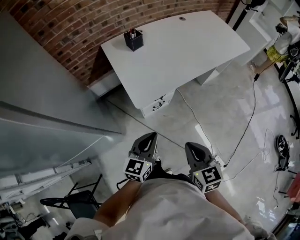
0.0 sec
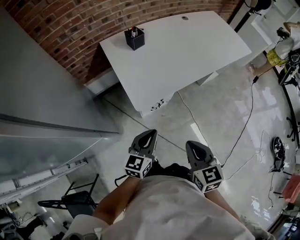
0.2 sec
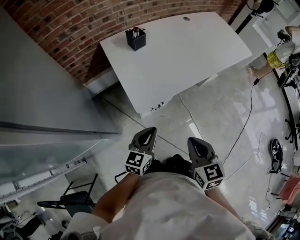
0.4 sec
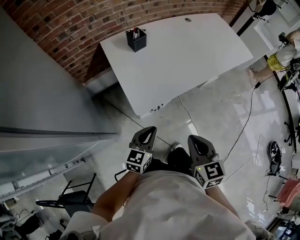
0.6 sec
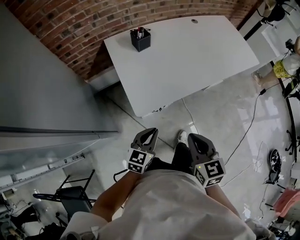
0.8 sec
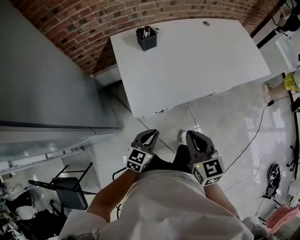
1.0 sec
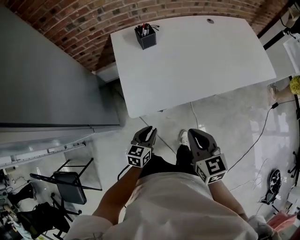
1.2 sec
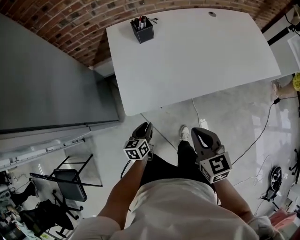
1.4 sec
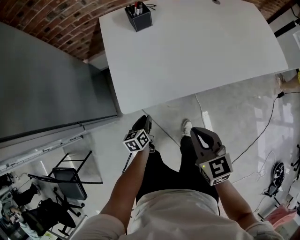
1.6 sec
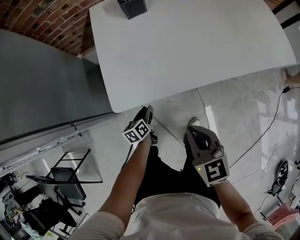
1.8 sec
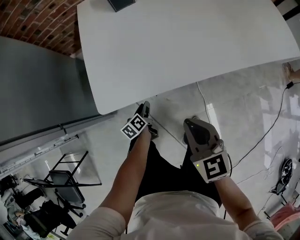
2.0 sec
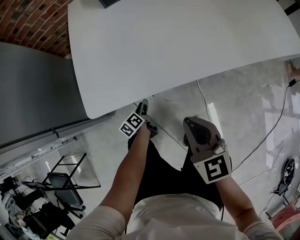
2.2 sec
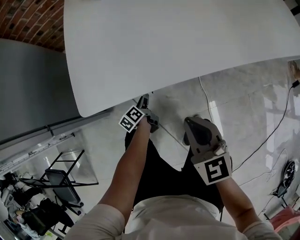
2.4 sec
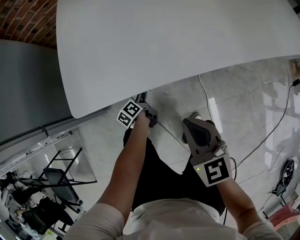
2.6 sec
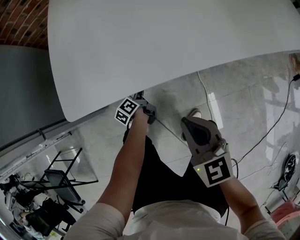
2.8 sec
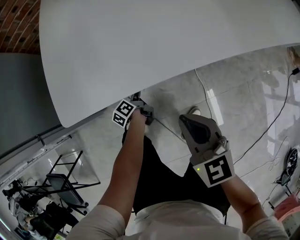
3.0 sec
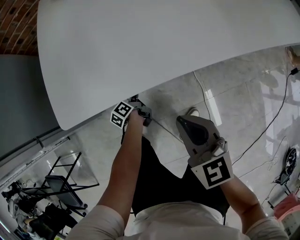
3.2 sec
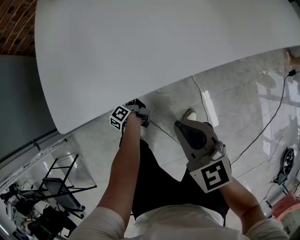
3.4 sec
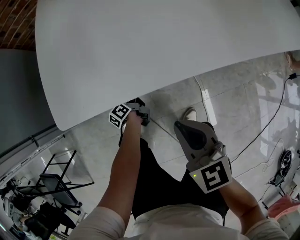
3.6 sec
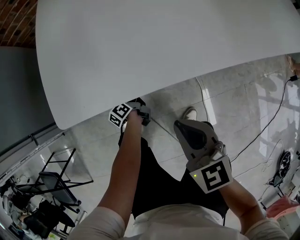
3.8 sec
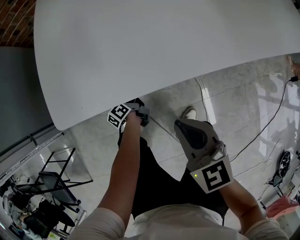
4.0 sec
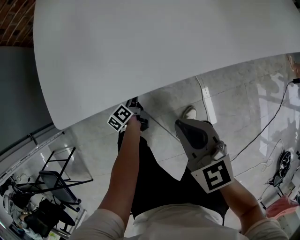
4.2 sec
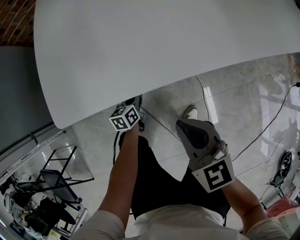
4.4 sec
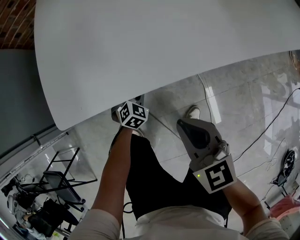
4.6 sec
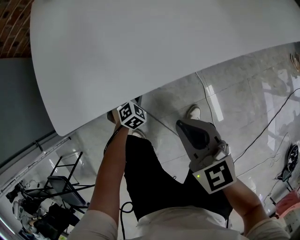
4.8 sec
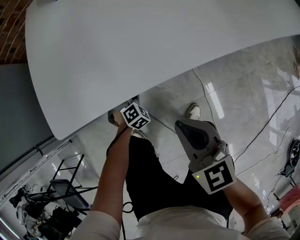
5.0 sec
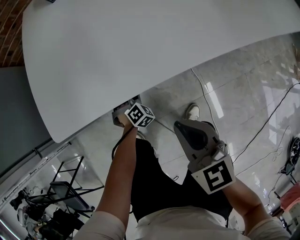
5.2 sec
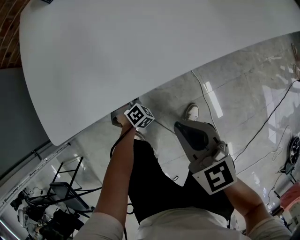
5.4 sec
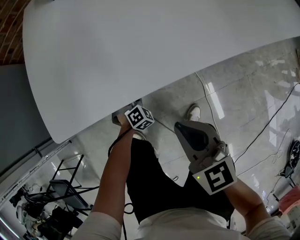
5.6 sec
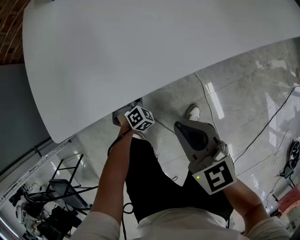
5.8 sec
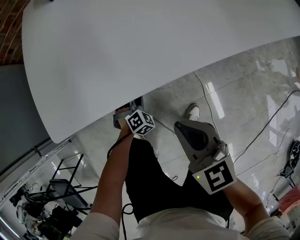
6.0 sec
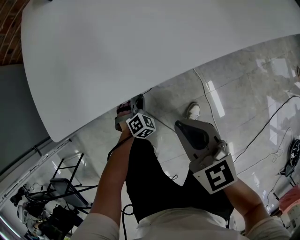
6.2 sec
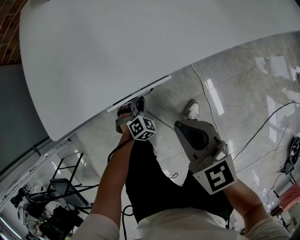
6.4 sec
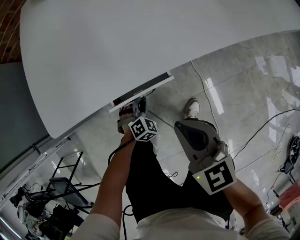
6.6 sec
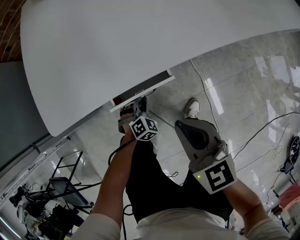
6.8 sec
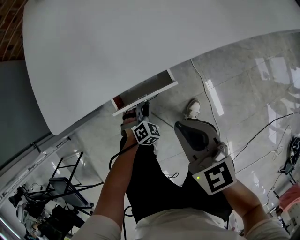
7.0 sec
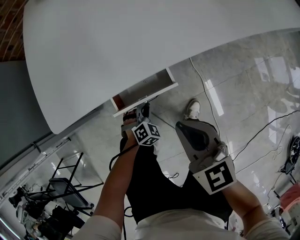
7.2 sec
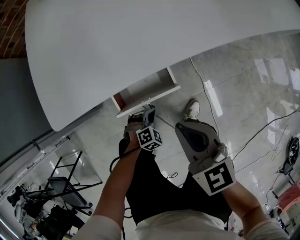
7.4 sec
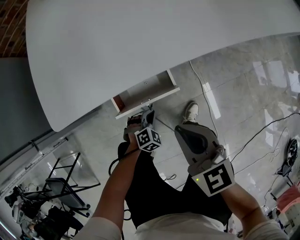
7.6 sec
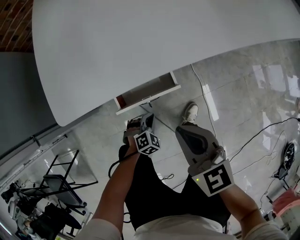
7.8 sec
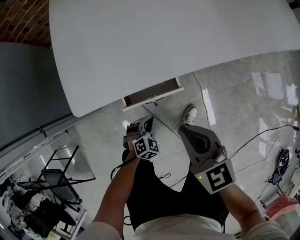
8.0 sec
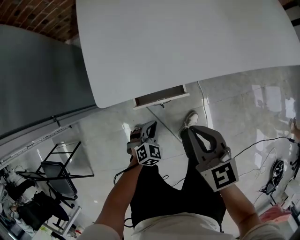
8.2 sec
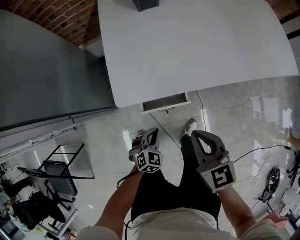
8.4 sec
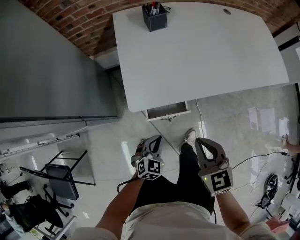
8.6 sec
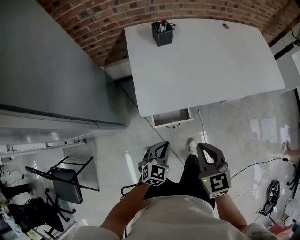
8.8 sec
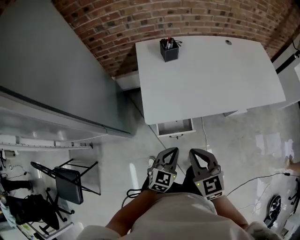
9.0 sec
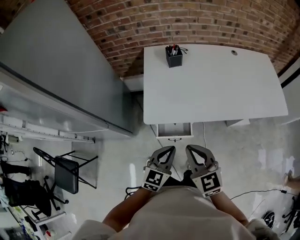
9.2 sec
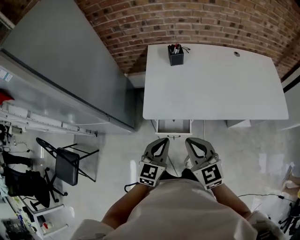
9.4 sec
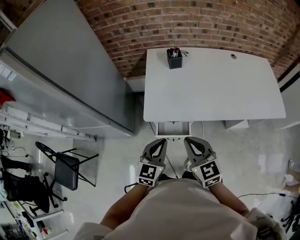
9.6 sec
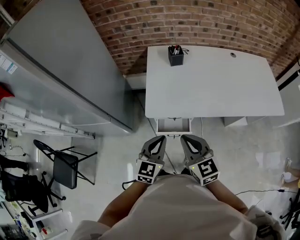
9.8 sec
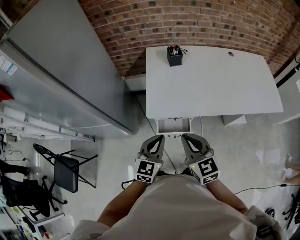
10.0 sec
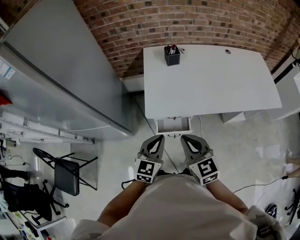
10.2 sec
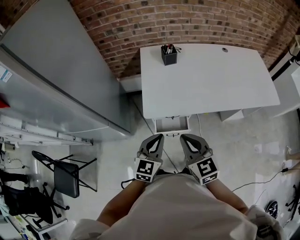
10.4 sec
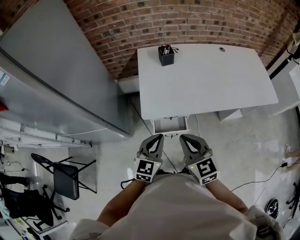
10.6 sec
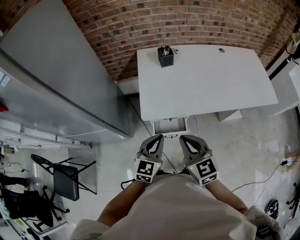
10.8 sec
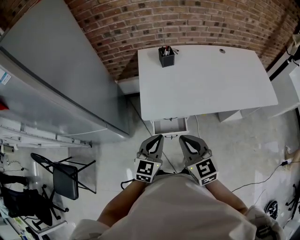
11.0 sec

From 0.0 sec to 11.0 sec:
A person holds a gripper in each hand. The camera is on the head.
From 0.0 sec to 1.6 sec: The left gripper is displaced downward and forward by roughly 35 cm, and rotates some 50 degrees; the right gripper moves forward and downward, some 20 cm.
From 1.6 sec to 3.2 sec: Both grippers travel together downward, approximately 25 cm. The left gripper swivels about 40 degrees.
From 3.2 sec to 4.8 sec: The left gripper shifts by about 5 cm, and twists about 120 degrees clockwise, seen from behind.
From 4.8 sec to 6.2 sec: The grippers stay close to where they were, moving slightly.
From 6.2 sec to 7.8 sec: The left gripper is displaced backward by about 10 cm.
From 7.8 sec to 9.4 sec: The right gripper moves upward, some 35 cm, and changes its angle by roughly 30 degrees. Meanwhile the left gripper shifts roughly 60 cm upward, and points its fingers some 50 degrees further upward.
From 9.4 sec to 11.0 sec: The left gripper moves approximately 5 cm. The right gripper heads to the left, covering about 5 cm.

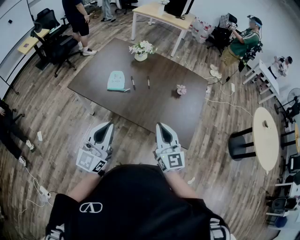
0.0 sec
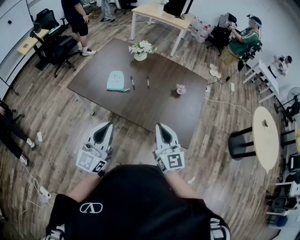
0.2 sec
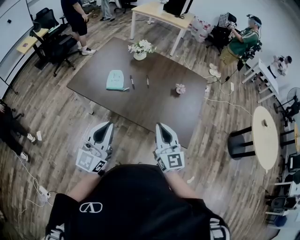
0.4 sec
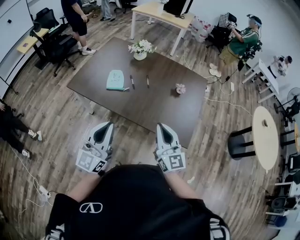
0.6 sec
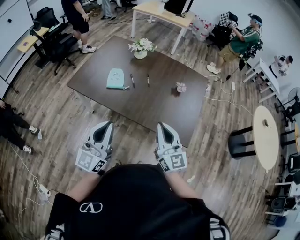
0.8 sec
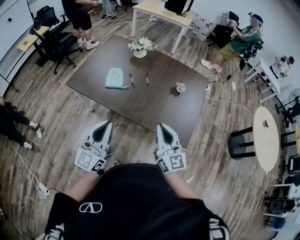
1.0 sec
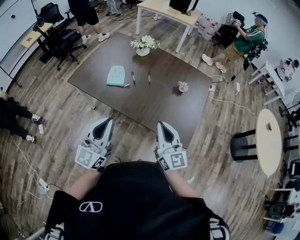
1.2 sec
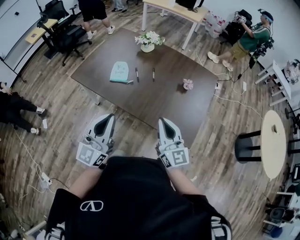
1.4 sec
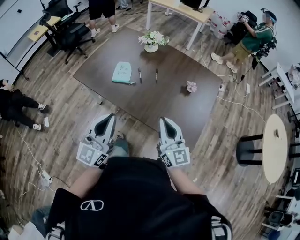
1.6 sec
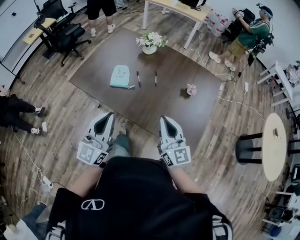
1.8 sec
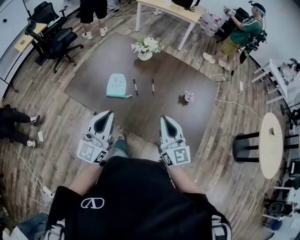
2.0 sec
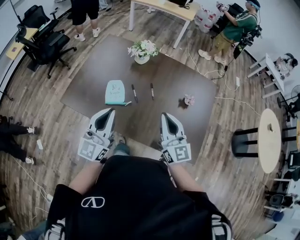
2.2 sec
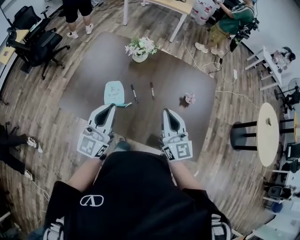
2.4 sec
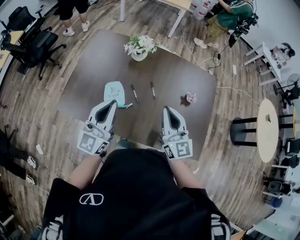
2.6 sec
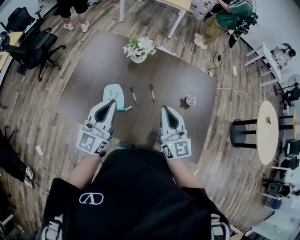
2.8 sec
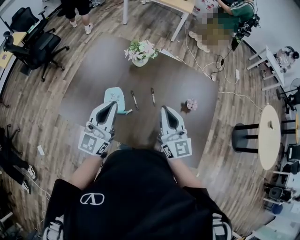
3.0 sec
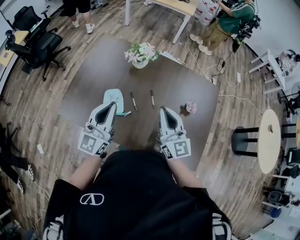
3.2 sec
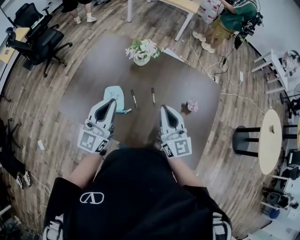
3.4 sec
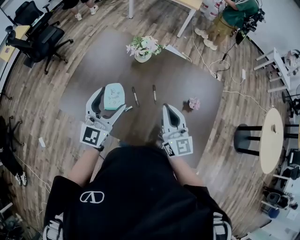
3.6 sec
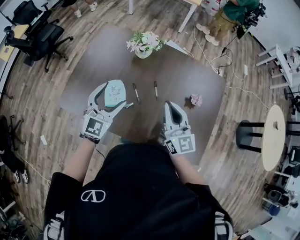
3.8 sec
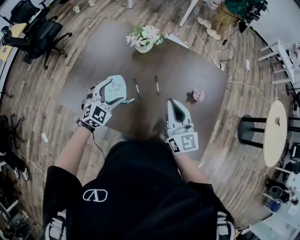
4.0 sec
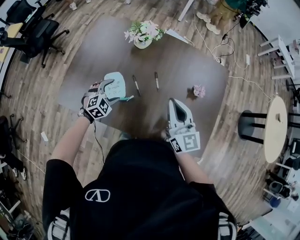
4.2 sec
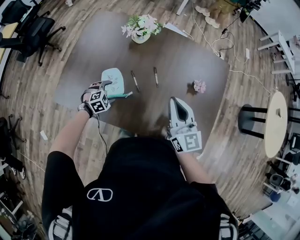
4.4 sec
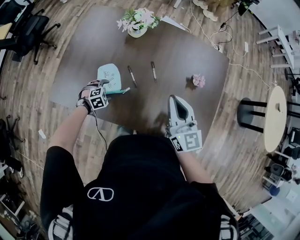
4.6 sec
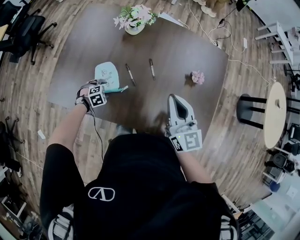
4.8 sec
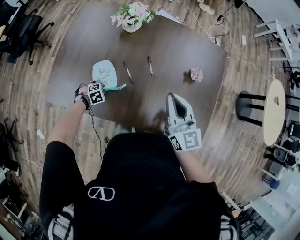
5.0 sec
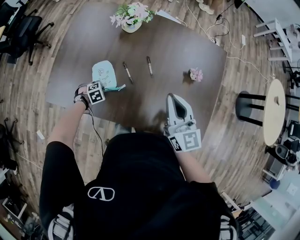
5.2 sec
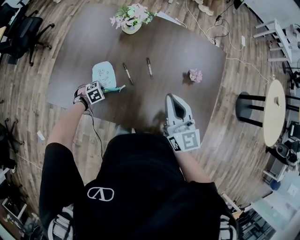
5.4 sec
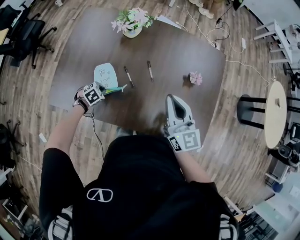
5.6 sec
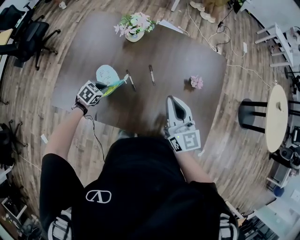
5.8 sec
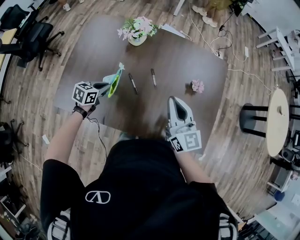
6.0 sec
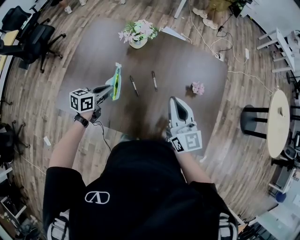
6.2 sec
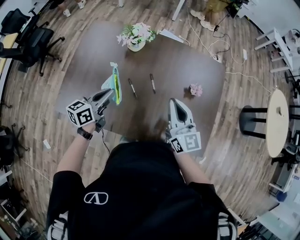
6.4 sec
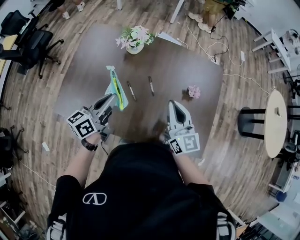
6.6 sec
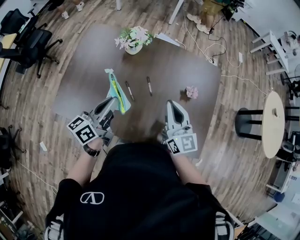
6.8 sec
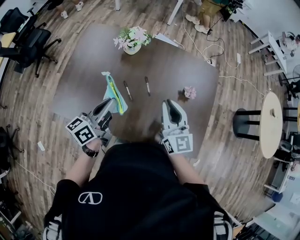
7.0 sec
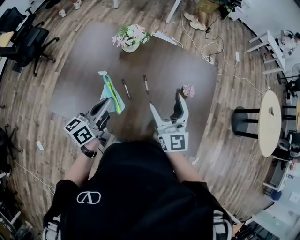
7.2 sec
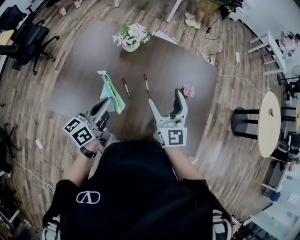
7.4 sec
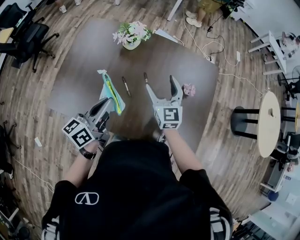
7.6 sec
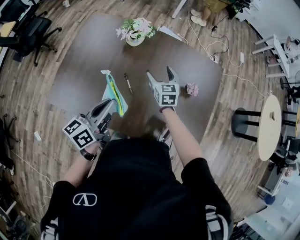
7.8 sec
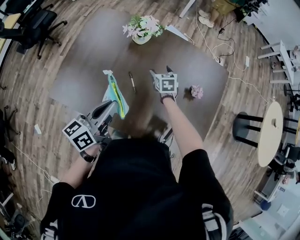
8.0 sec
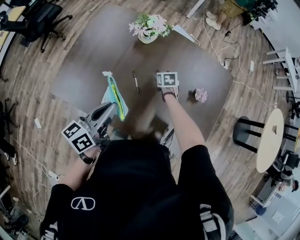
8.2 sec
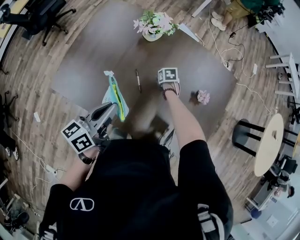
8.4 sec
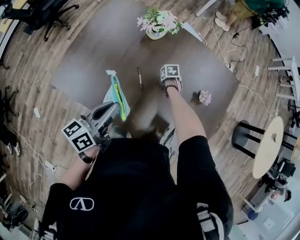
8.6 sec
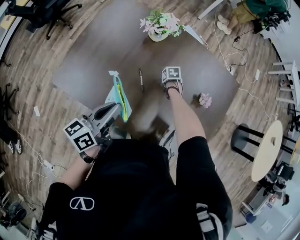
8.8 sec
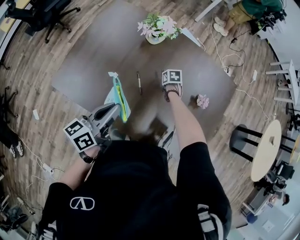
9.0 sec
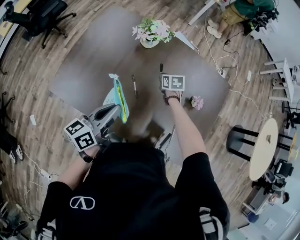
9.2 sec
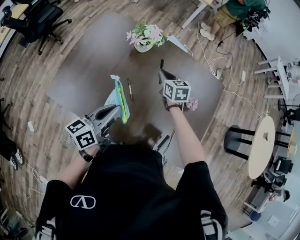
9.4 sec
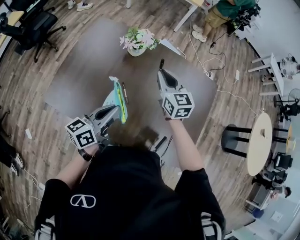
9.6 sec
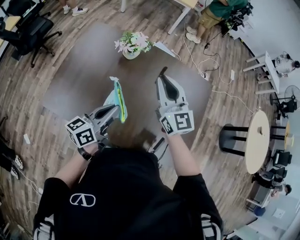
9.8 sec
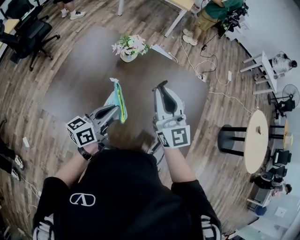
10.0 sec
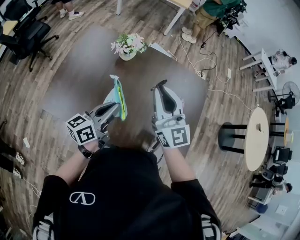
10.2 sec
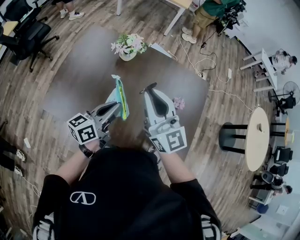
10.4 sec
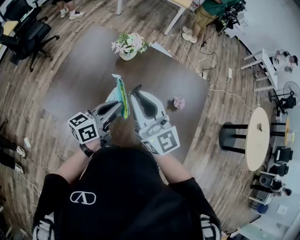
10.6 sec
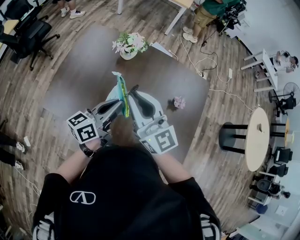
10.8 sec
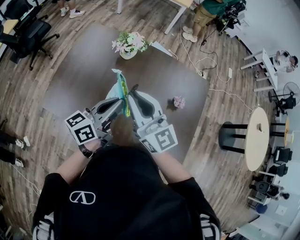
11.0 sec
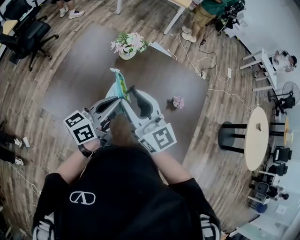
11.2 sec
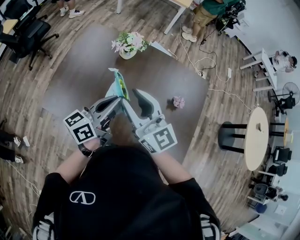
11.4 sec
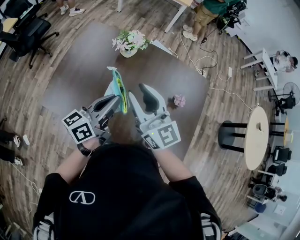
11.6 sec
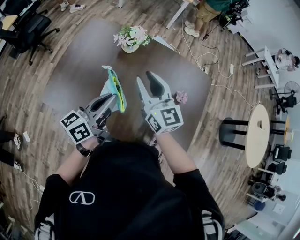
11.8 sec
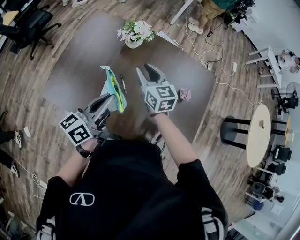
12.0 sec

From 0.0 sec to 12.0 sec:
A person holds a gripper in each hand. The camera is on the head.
From 0.0 sec to 1.6 sec: Both grippers move forward, some 5 cm.
From 1.6 sec to 3.0 sec: The grippers both shift forward by approximately 35 cm.
From 3.0 sec to 4.4 sec: The right gripper travels downward by roughly 5 cm. The left gripper moves downward, about 35 cm, tilts its fingers about 80 degrees downward, and opens.
From 4.4 sec to 6.0 sec: The left gripper goes some 10 cm upward, rolls counterclockwise, seen from behind, by some 50 degrees, and closes up.
From 6.0 sec to 7.6 sec: The left gripper shifts about 20 cm upward, and points its fingers some 40 degrees further upward. The right gripper moves forward, about 10 cm, and opens up.
From 7.6 sec to 9.0 sec: The left gripper ends up approximately 5 cm from where it was; the right gripper heads downward, covering approximately 35 cm, points its fingers roughly 60 degrees further downward, and closes.
From 9.0 sec to 10.4 sec: The right gripper moves upward, about 50 cm, and tips its fingers upward by some 80 degrees. The left gripper is displaced to the right by roughly 5 cm.
From 10.4 sec to 12.0 sec: The right gripper moves downward and forward, about 20 cm, and changes its angle by approximately 30 degrees.

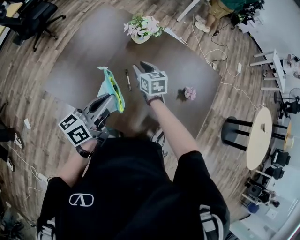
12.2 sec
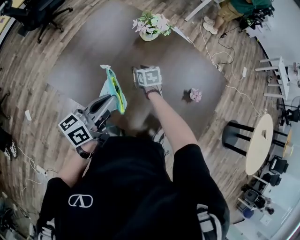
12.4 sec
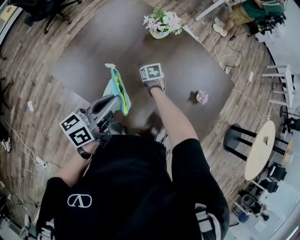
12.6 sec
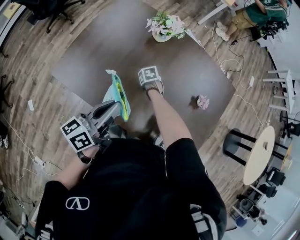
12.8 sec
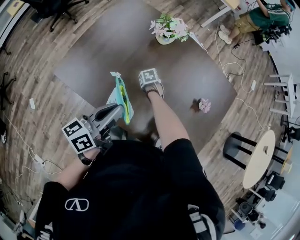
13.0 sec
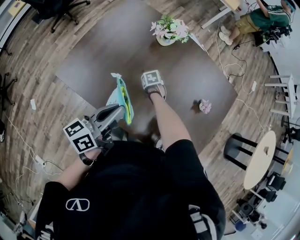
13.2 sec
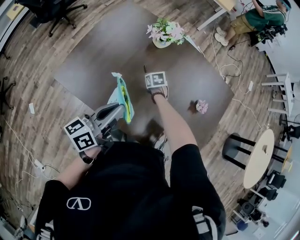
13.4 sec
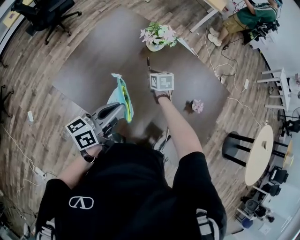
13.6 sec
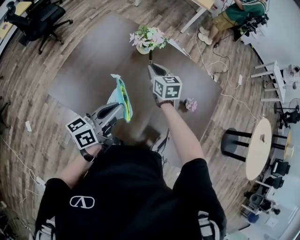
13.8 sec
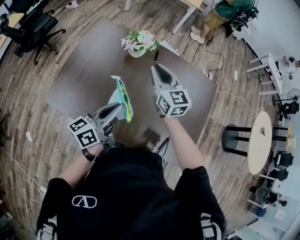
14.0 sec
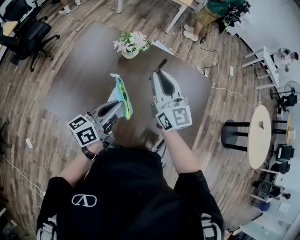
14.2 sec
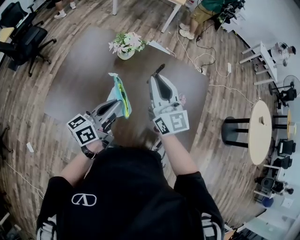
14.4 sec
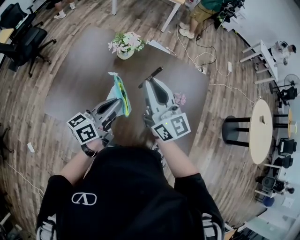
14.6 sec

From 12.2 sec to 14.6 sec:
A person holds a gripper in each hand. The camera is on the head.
From 12.2 sec to 13.4 sec: The right gripper is displaced downward by some 20 cm, and rotates approximately 30 degrees.
From 13.4 sec to 14.6 sec: The left gripper is displaced to the right by roughly 10 cm. The right gripper goes about 50 cm upward, and tips its fingers upward by roughly 80 degrees.
